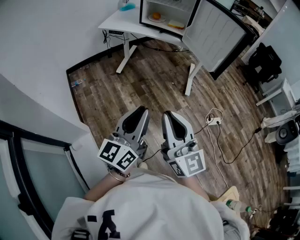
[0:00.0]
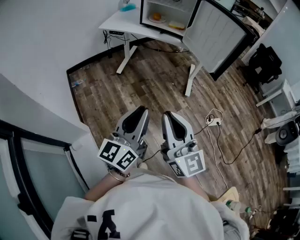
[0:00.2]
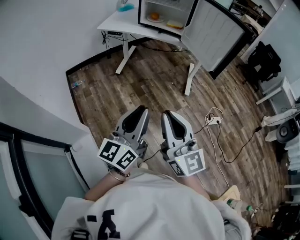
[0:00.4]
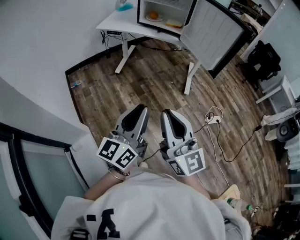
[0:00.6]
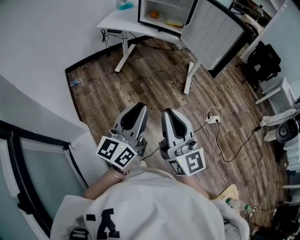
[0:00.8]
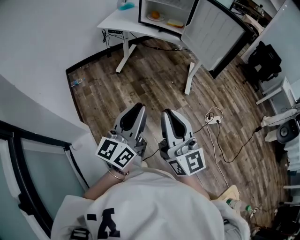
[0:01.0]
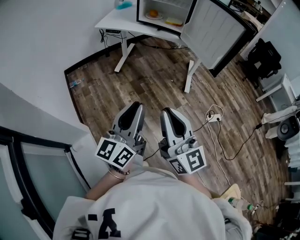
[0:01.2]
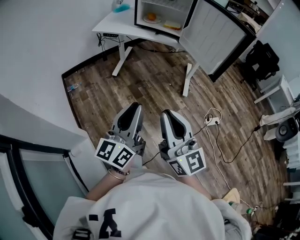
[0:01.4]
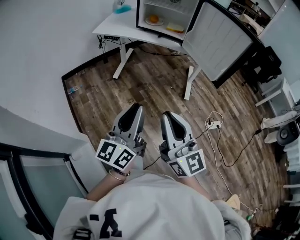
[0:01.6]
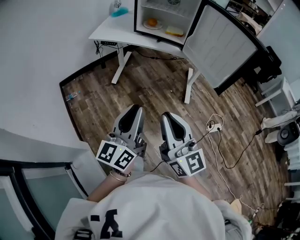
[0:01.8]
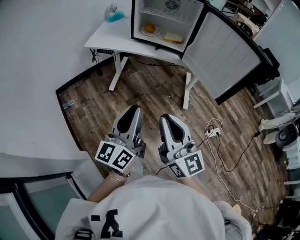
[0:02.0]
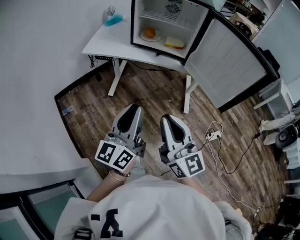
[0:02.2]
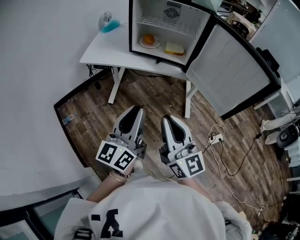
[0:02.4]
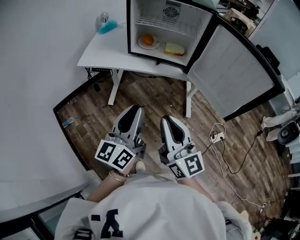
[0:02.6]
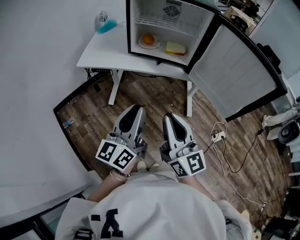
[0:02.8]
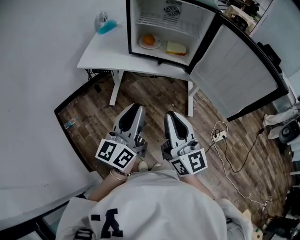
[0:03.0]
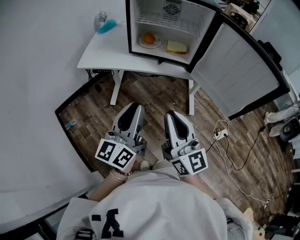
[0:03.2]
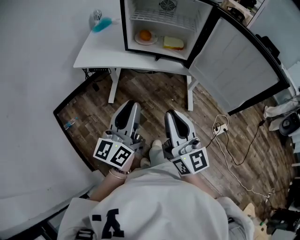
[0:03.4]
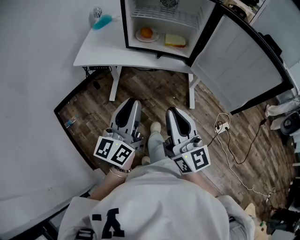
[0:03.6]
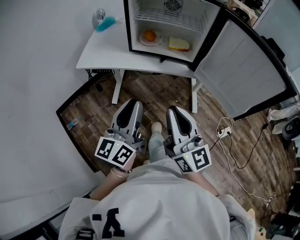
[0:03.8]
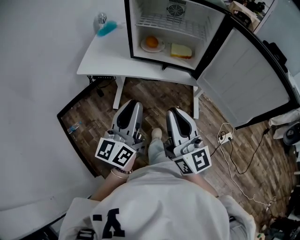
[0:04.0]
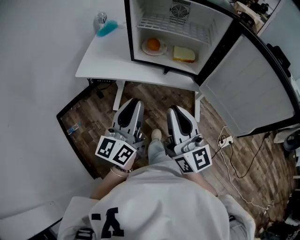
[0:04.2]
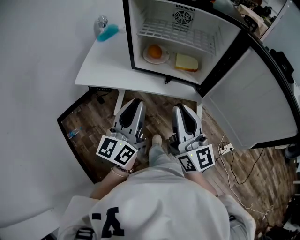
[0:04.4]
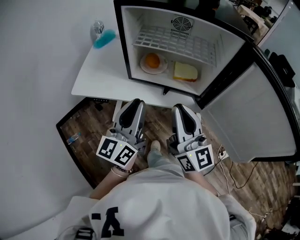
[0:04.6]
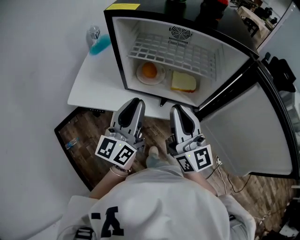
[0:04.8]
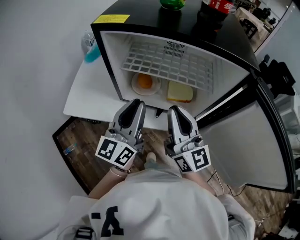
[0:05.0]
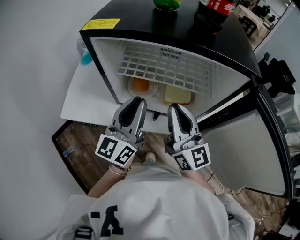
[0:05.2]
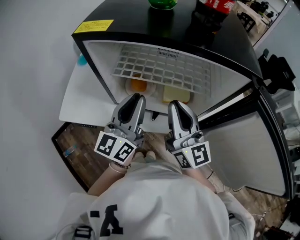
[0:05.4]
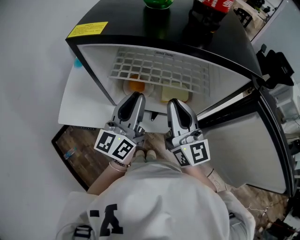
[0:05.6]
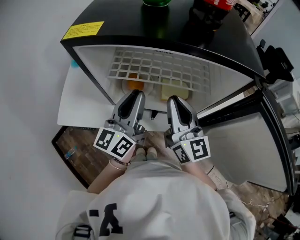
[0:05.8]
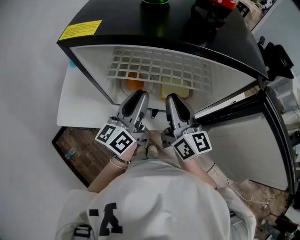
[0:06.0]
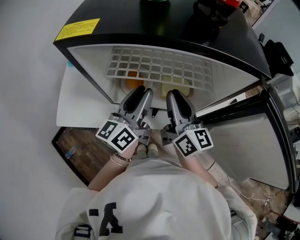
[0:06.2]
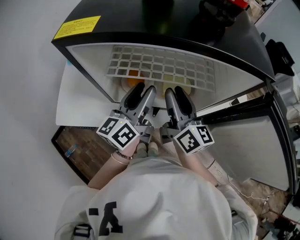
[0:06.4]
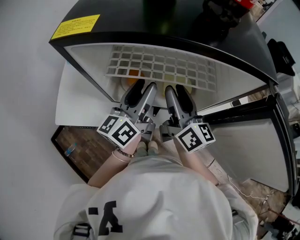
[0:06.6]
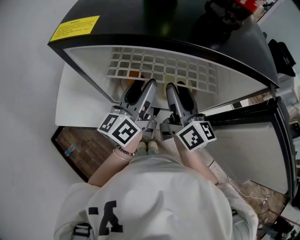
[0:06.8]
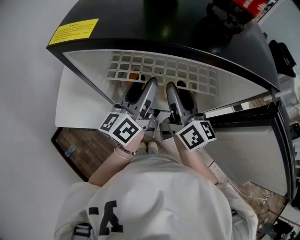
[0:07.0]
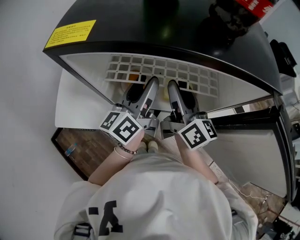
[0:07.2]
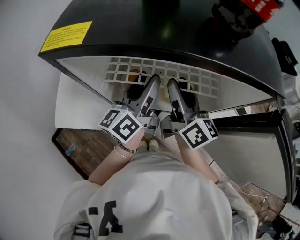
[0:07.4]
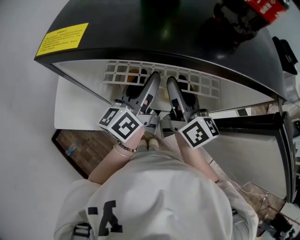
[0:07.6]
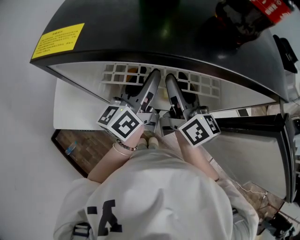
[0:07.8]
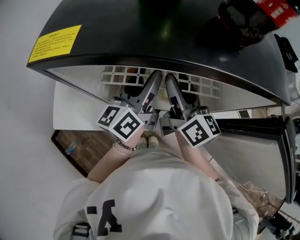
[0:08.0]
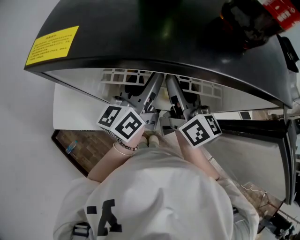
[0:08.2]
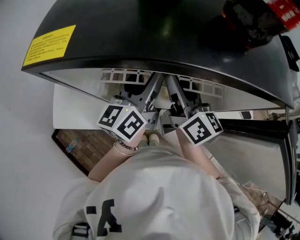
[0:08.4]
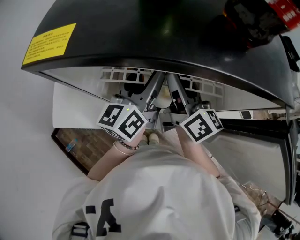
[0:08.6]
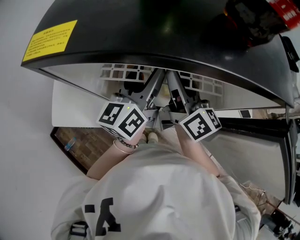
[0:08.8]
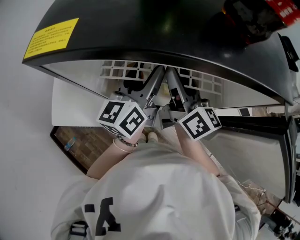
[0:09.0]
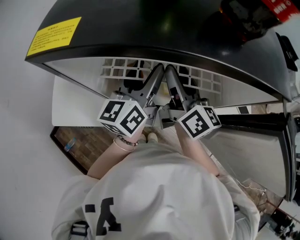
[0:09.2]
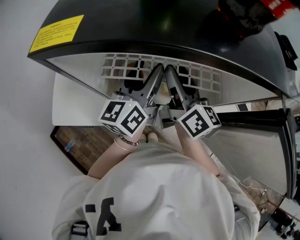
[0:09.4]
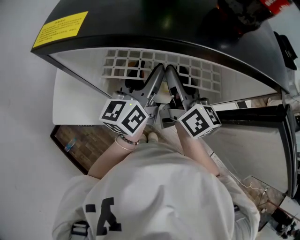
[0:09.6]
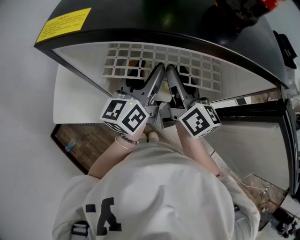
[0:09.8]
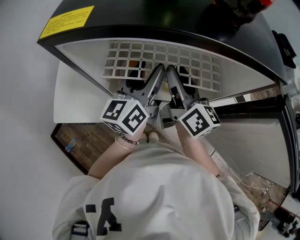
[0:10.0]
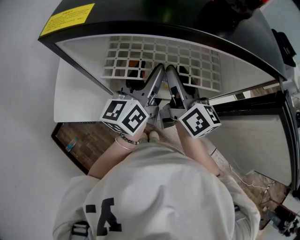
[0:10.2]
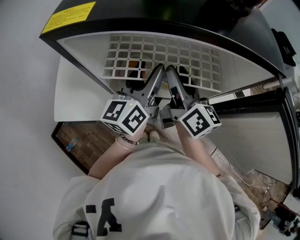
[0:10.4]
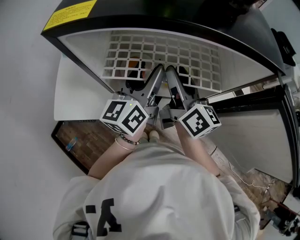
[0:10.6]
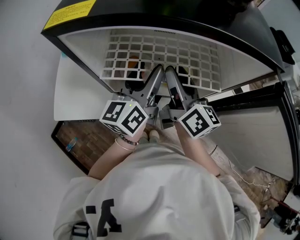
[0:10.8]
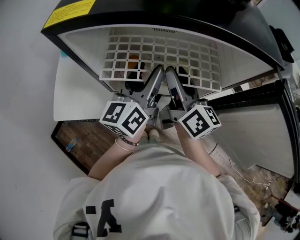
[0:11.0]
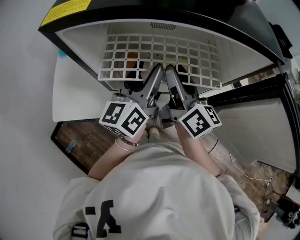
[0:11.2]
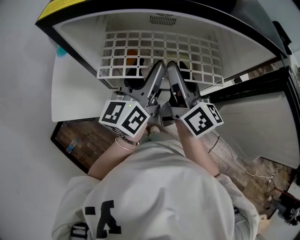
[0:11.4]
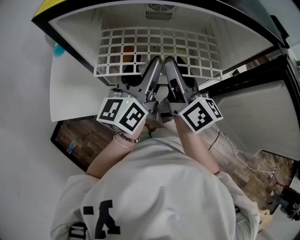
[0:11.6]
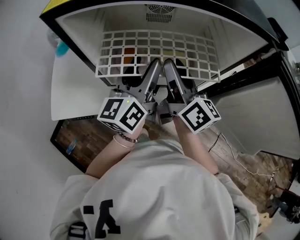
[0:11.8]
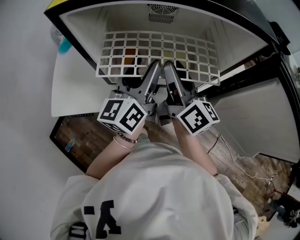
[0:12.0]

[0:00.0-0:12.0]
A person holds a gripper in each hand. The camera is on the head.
0.0 to 1.6 s: The two grippers go some 10 cm forward.
1.6 to 3.0 s: The two grippers go approximately 30 cm forward.
3.0 to 4.4 s: The two grippers go some 20 cm forward.
4.4 to 6.0 s: Both grippers travel together forward, some 25 cm.
6.0 to 7.6 s: Both grippers travel together forward, roughly 10 cm. The right gripper opens; the left gripper opens its fingers.
7.6 to 10.4 s: The grippers stay close to where they were, moving slightly.
10.4 to 12.0 s: The right gripper travels backward by some 5 cm.

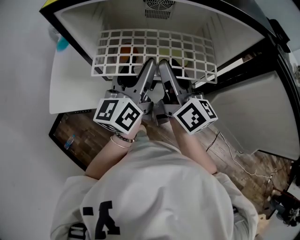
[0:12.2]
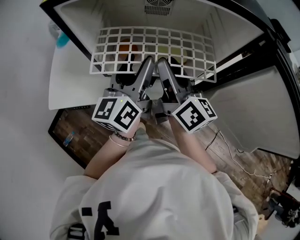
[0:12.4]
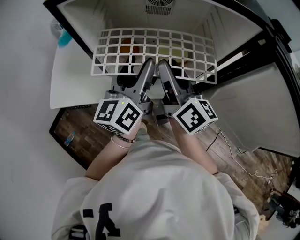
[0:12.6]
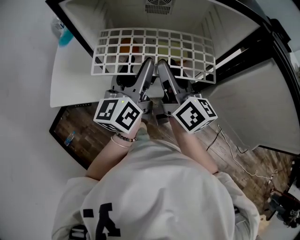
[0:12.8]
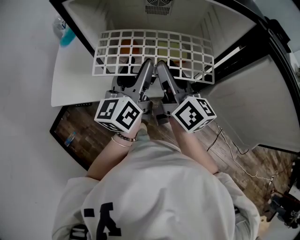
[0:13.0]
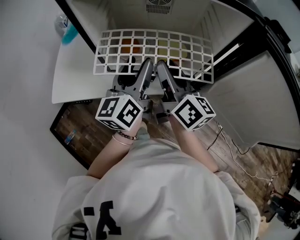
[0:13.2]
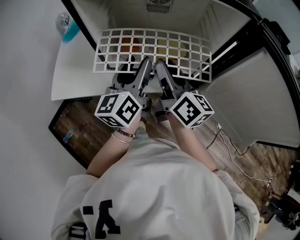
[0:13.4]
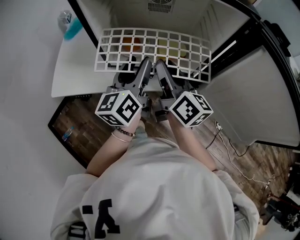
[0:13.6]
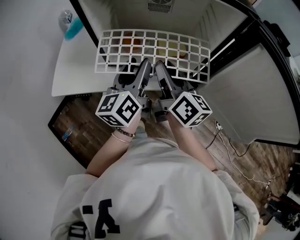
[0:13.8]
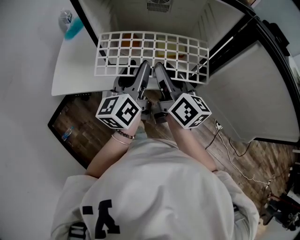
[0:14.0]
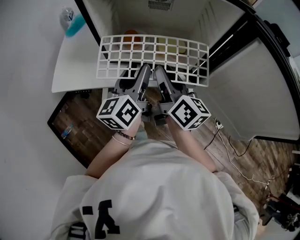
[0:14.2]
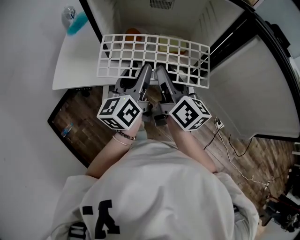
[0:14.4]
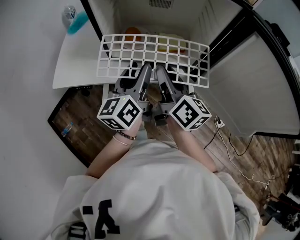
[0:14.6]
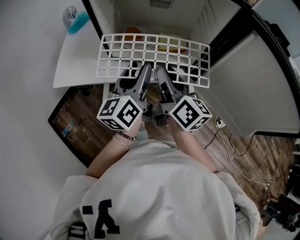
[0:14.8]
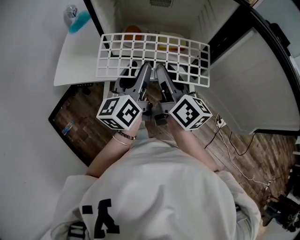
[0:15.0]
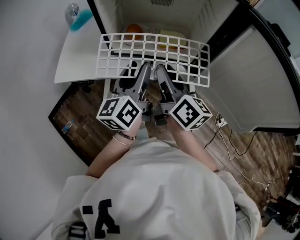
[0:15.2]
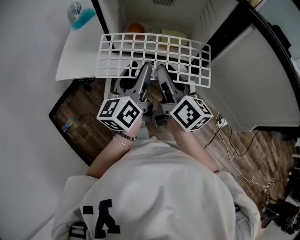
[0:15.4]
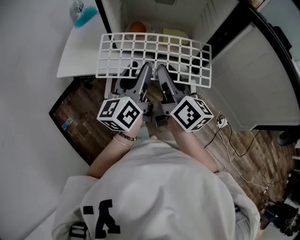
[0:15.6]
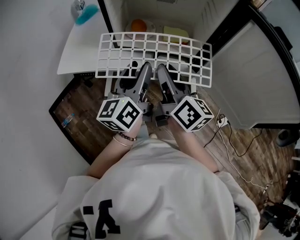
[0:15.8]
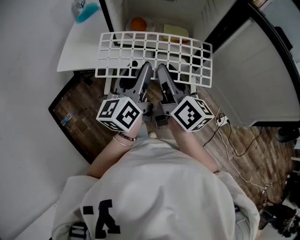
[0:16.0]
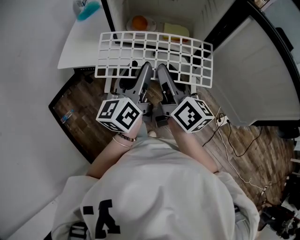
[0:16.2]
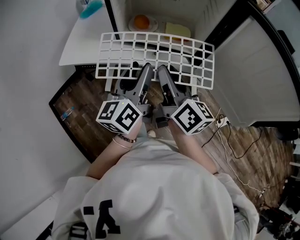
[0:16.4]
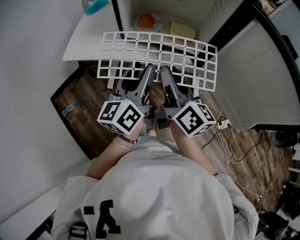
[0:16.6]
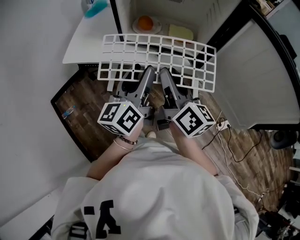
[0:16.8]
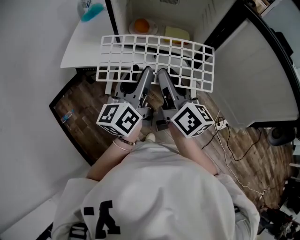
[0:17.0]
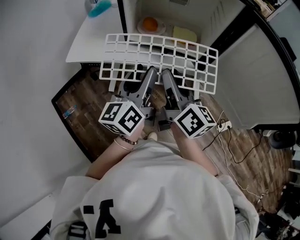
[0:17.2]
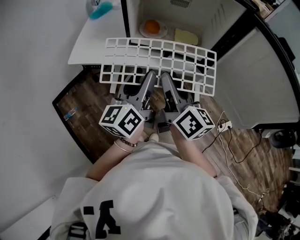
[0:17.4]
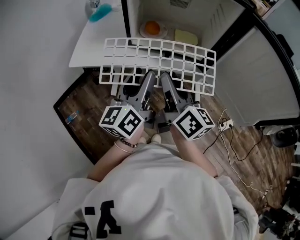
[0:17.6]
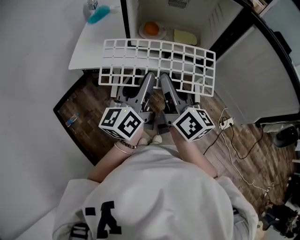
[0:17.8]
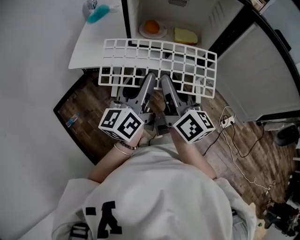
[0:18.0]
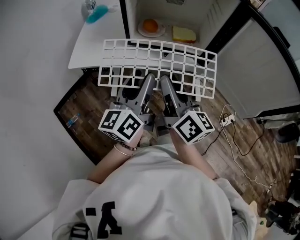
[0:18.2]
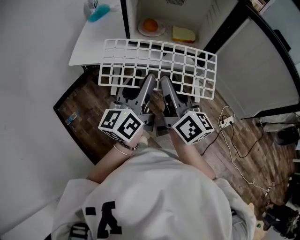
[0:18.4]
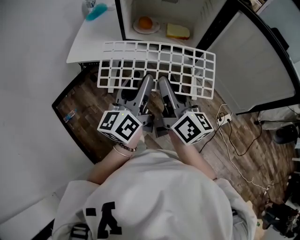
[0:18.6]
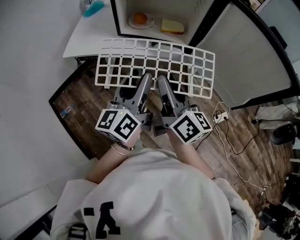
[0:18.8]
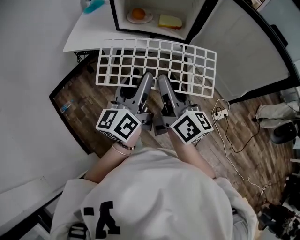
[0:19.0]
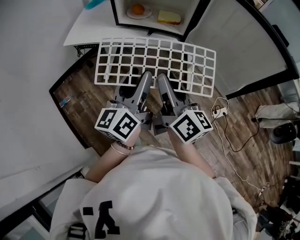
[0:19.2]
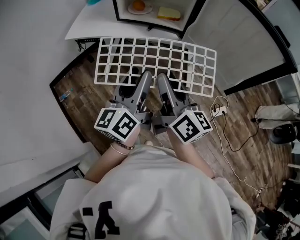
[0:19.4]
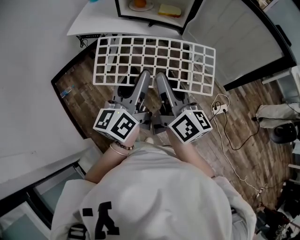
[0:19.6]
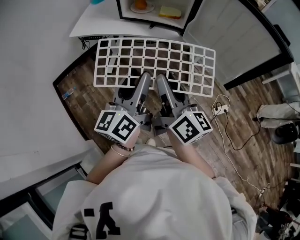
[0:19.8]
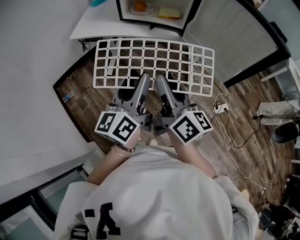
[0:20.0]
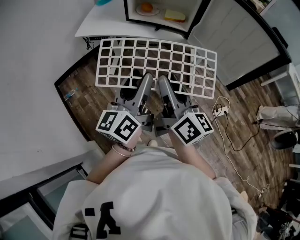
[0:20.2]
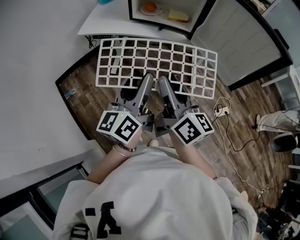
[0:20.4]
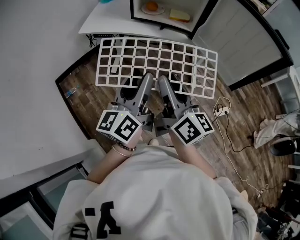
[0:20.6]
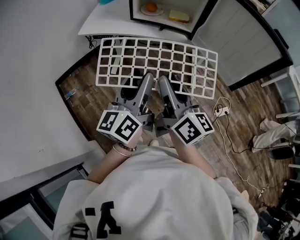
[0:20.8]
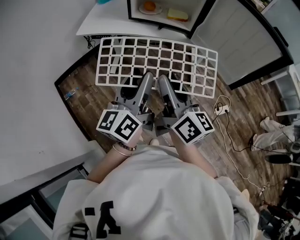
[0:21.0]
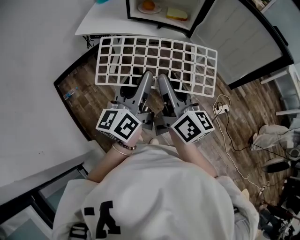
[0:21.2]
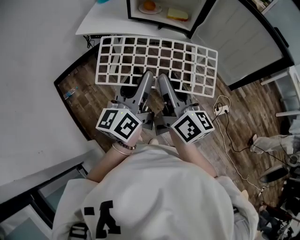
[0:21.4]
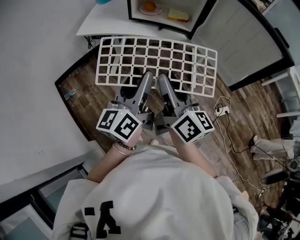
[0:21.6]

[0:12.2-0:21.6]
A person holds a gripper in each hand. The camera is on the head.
12.2 to 13.8 s: The two grippers go roughly 5 cm backward.
13.8 to 15.4 s: The grippers both shift backward by about 10 cm.
15.4 to 17.0 s: The two grippers go some 5 cm backward.
17.0 to 18.4 s: The right gripper moves backward, approximately 5 cm, while the left gripper moves about 5 cm.
18.4 to 20.0 s: Both grippers move backward, about 20 cm.
20.0 to 21.6 s: There are only small adjustments of the grippers.

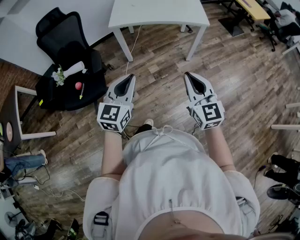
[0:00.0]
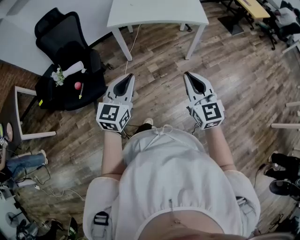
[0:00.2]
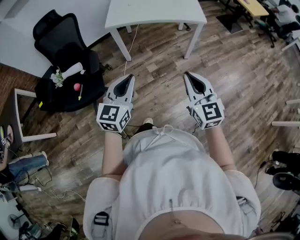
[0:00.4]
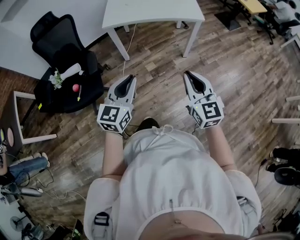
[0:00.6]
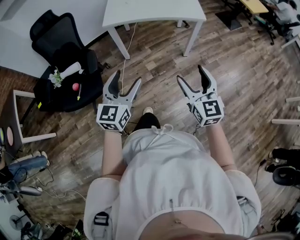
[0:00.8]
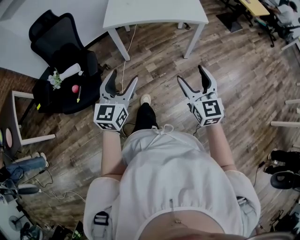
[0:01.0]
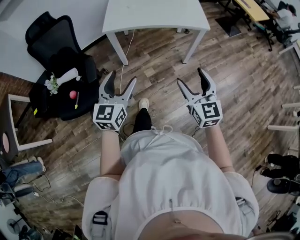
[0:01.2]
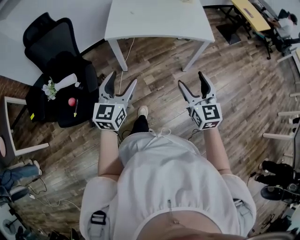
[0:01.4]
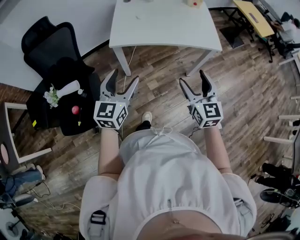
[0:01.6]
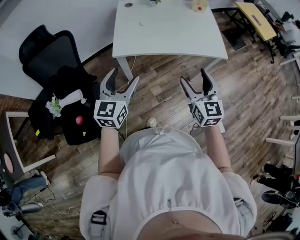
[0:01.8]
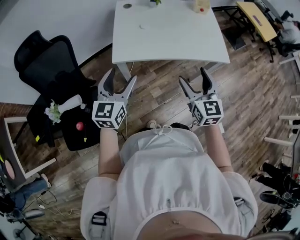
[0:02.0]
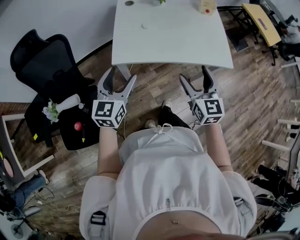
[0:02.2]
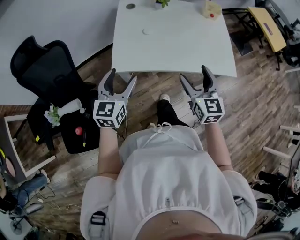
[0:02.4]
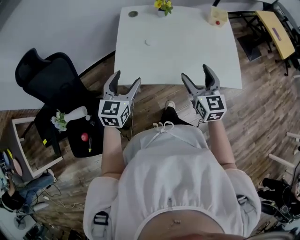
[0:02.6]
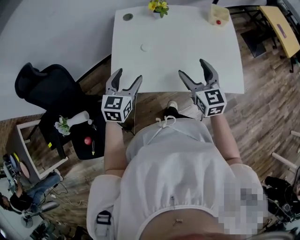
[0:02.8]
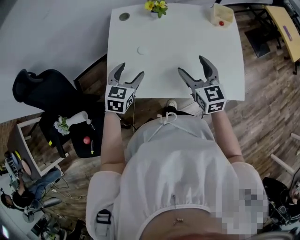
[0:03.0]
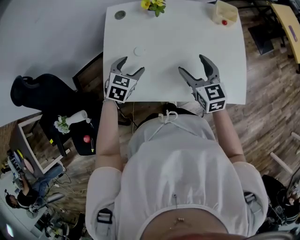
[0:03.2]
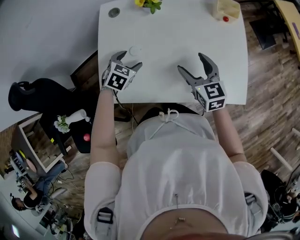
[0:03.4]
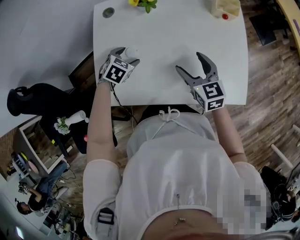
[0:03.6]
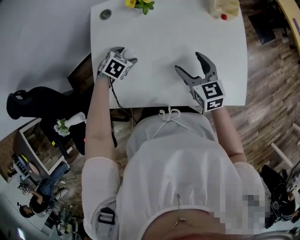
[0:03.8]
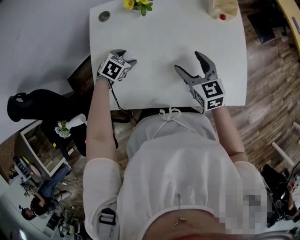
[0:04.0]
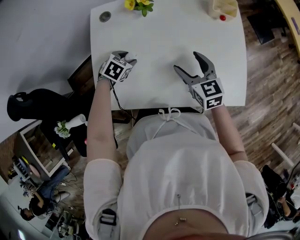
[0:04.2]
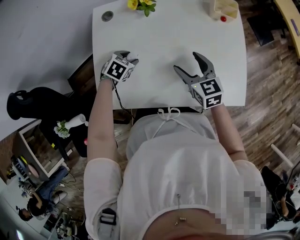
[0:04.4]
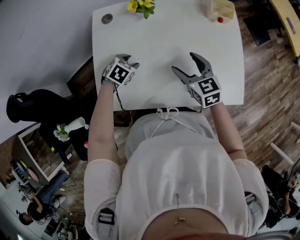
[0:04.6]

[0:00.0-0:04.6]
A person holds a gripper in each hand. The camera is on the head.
0.0 to 1.6 s: Both grippers move forward, approximately 25 cm. The left gripper opens up; the right gripper opens up.
1.6 to 3.0 s: The two grippers travel together, forward, approximately 50 cm. The left gripper turns by roughly 30 degrees.
3.0 to 4.6 s: The left gripper is displaced downward and forward by roughly 20 cm, and tilts its fingers roughly 30 degrees downward. Meanwhile the right gripper travels downward and forward by some 10 cm.
